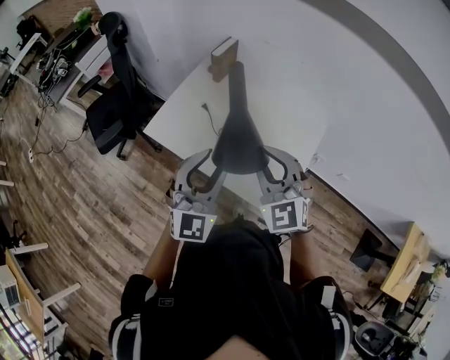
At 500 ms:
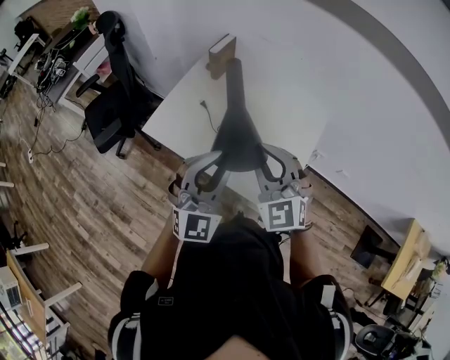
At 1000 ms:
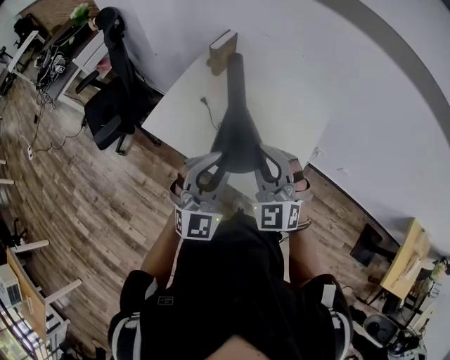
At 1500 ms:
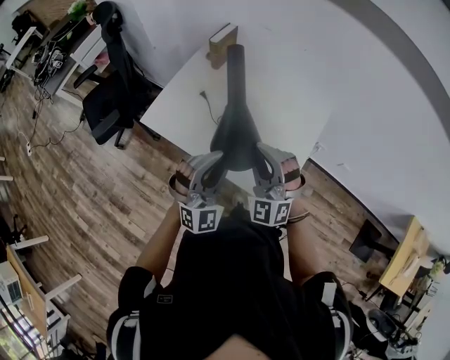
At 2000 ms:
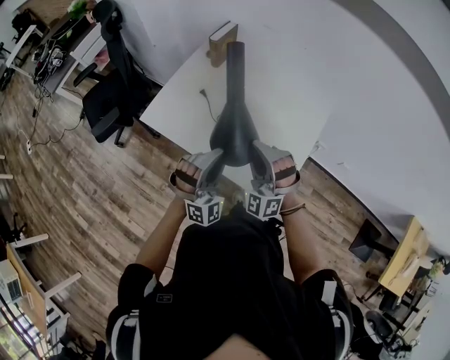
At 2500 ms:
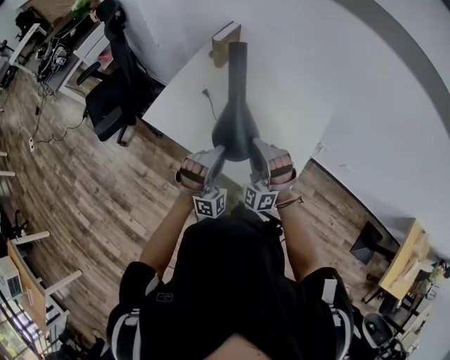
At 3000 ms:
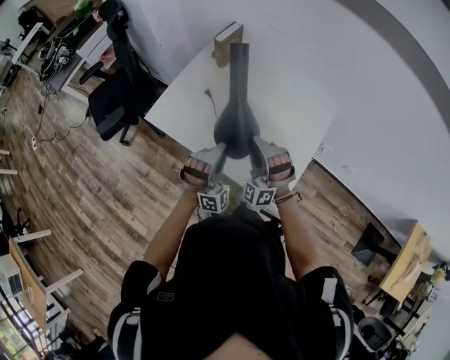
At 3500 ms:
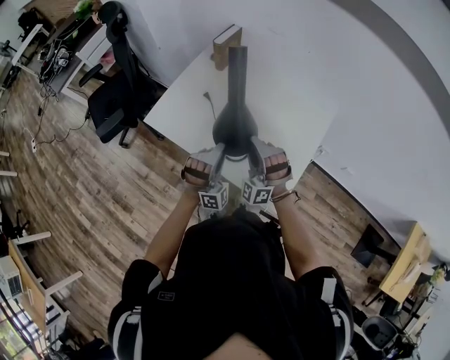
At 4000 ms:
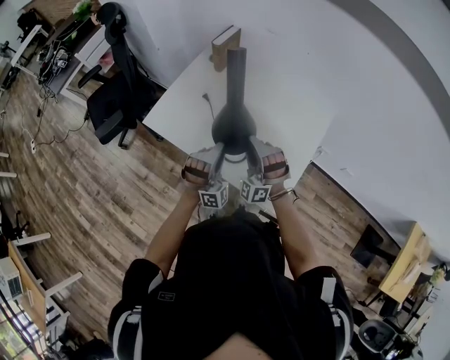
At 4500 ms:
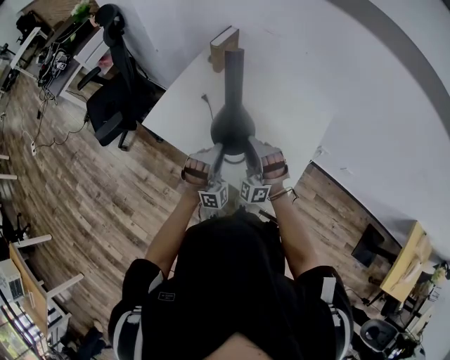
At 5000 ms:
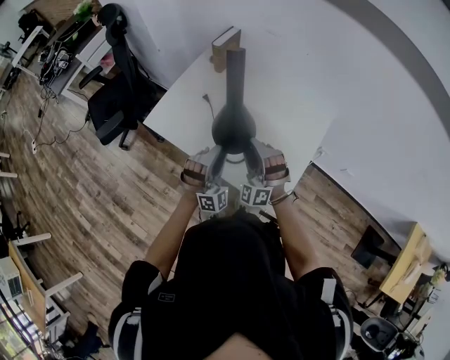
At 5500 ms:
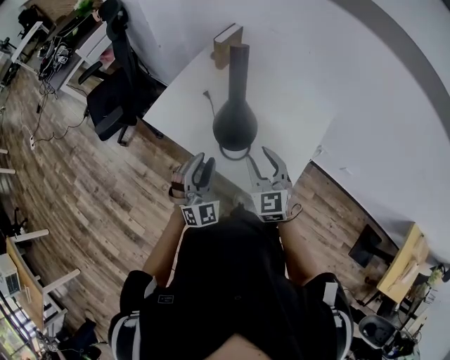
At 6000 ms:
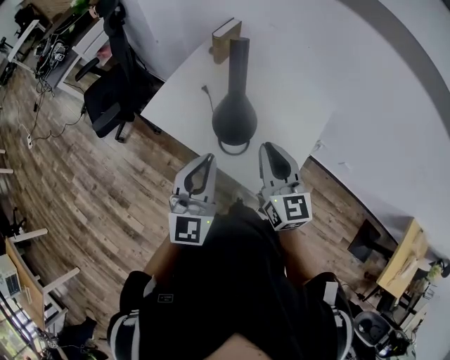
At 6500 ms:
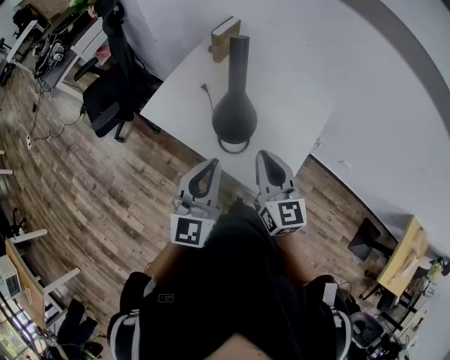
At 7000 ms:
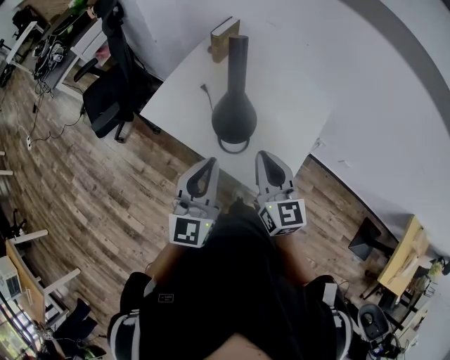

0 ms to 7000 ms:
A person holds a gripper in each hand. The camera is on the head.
0 ms to 2000 ms: The grippers both shift downward by about 10 cm. The right gripper changes its angle by roughly 40 degrees. Meanwhile the left gripper rotates approximately 40 degrees.
2000 ms to 3500 ms: Both grippers move downward, roughly 5 cm.
3500 ms to 5000 ms: The grippers move only a little.
5000 ms to 7000 ms: The grippers both shift upward and backward by roughly 15 cm. The right gripper rotates around the line of its fingers by approximately 80 degrees, clockwise from behind, and closes. The left gripper twists approximately 80 degrees counterclockwise, seen from behind, and closes its fingers.

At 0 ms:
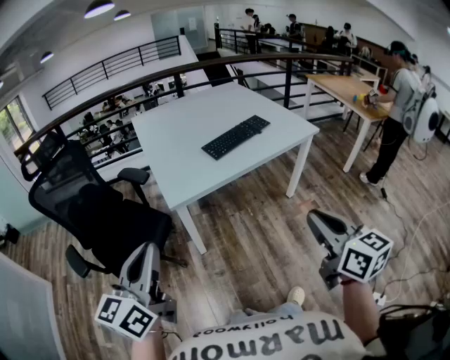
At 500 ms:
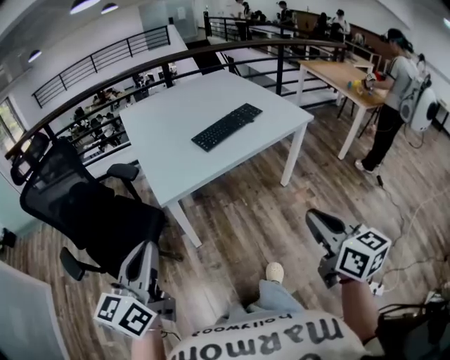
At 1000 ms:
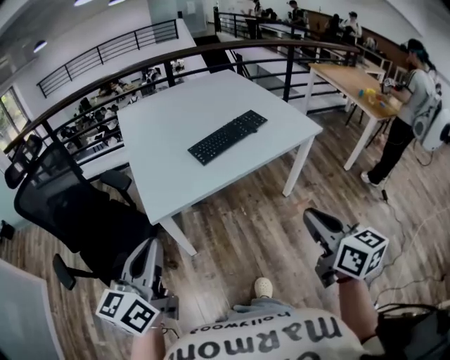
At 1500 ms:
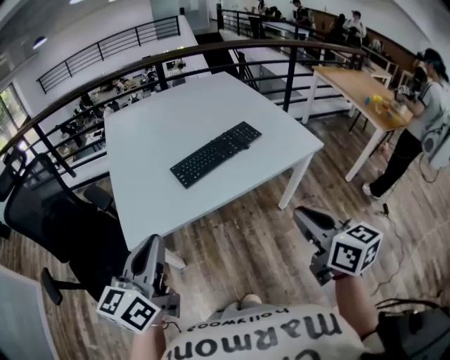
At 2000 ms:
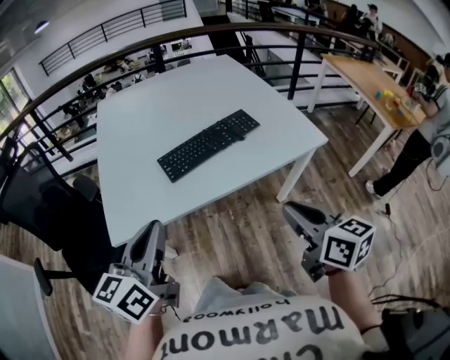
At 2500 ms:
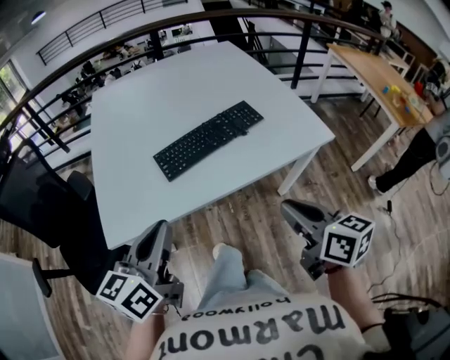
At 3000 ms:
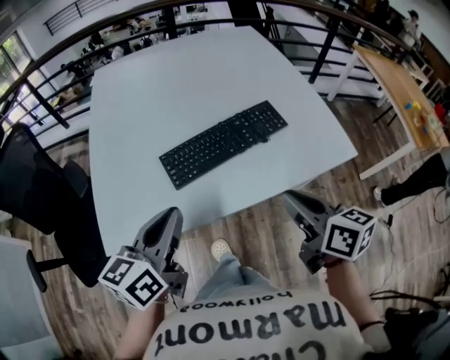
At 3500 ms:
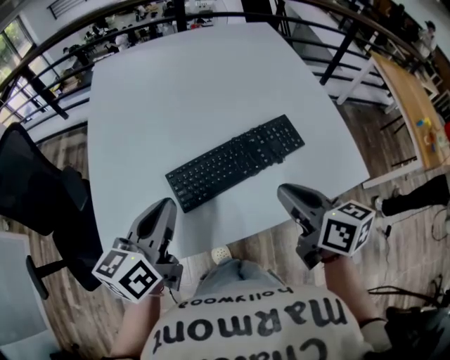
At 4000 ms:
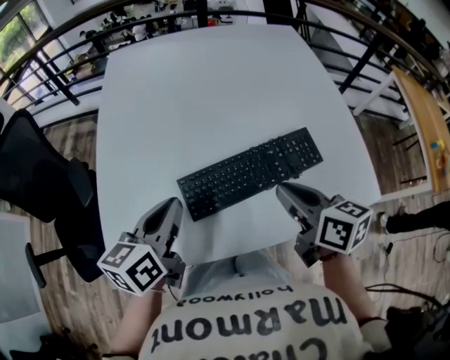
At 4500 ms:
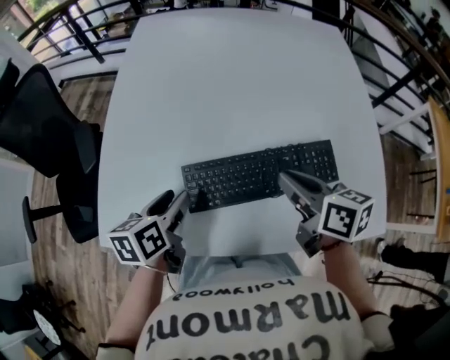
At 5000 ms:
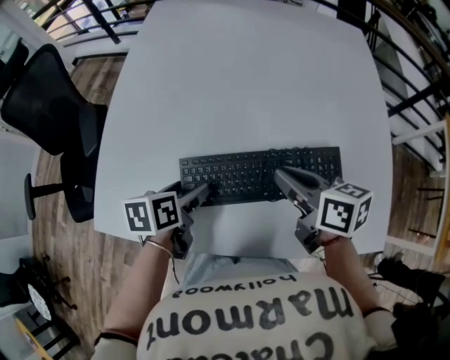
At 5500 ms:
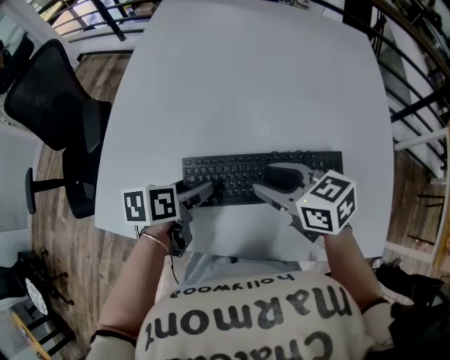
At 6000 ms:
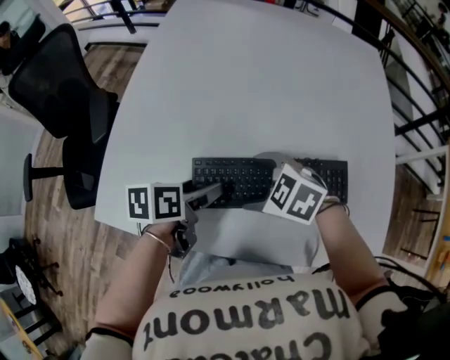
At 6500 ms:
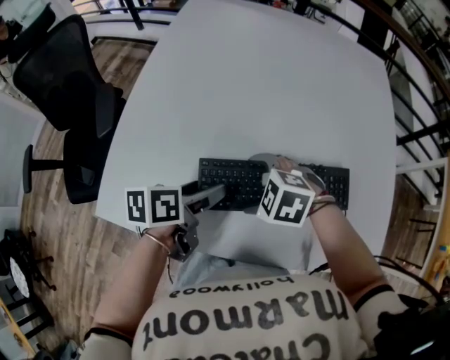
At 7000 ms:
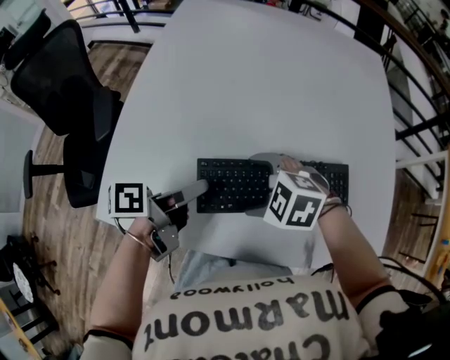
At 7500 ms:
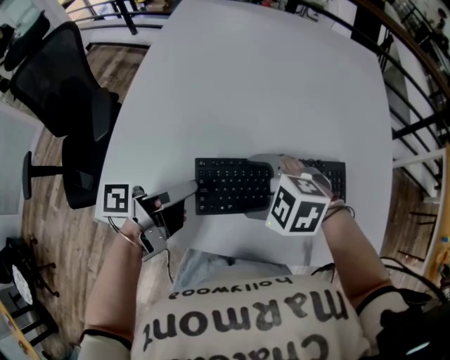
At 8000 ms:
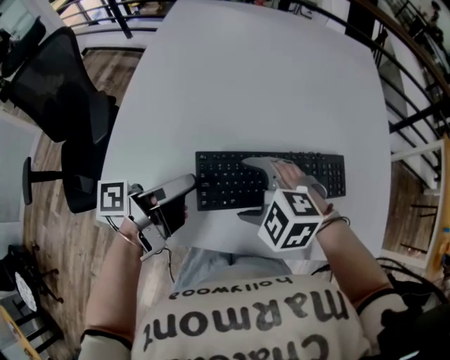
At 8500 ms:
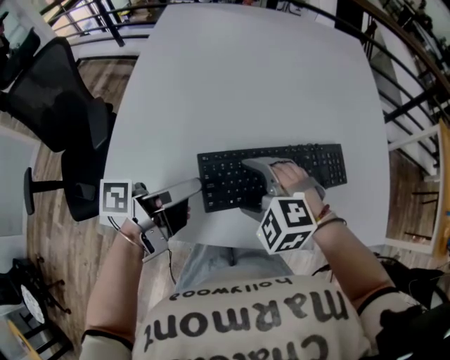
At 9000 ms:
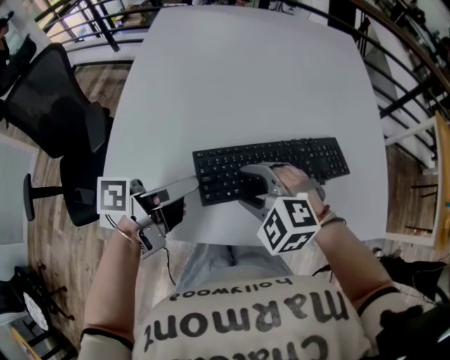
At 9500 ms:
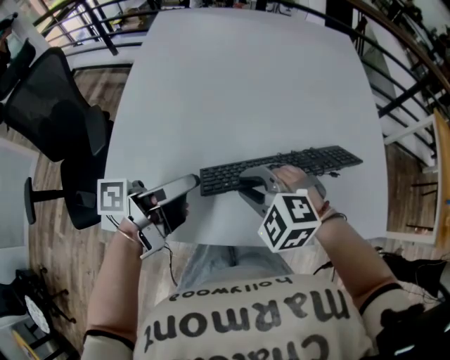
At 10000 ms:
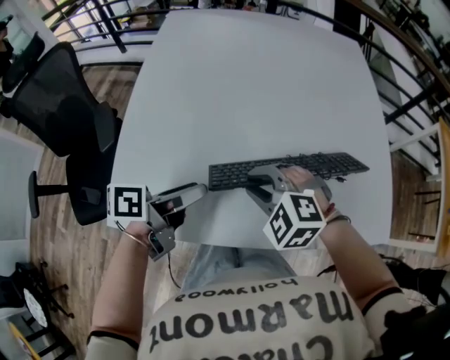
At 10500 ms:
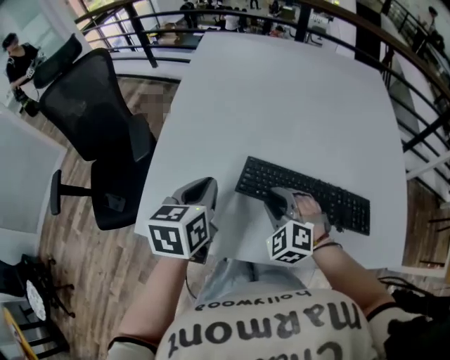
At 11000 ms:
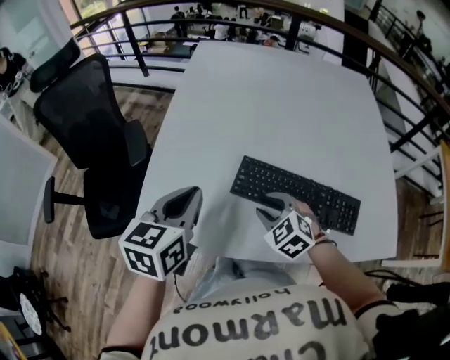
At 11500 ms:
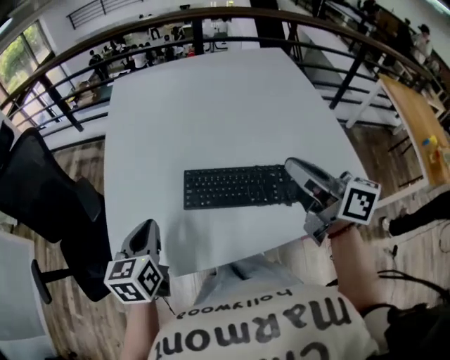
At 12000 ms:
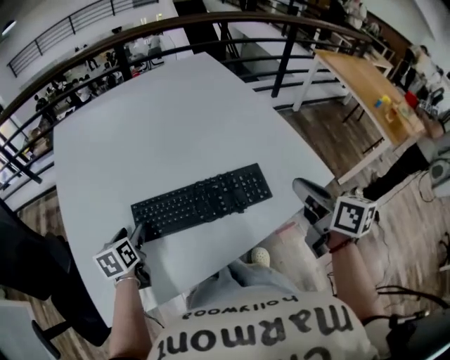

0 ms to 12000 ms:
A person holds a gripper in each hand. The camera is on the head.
0 ms to 2000 ms: The two grippers go some 30 cm forward and to the right.
2000 ms to 4000 ms: The grippers both shift forward by approximately 30 cm. The left gripper changes its angle by roughly 20 degrees.
4000 ms to 6000 ms: The two grippers go approximately 15 cm downward. The right gripper points its fingers approximately 30 degrees further downward, and opens up; the left gripper rotates approximately 40 degrees, and opens.
6000 ms to 8000 ms: The right gripper ends up some 5 cm from where it was; the left gripper is displaced upward by approximately 10 cm, and points its fingers about 40 degrees further upward.
8000 ms to 10000 ms: The right gripper closes its fingers, while the left gripper swivels approximately 20 degrees.
10000 ms to 12000 ms: The right gripper moves up and down over some 25 cm, changing direction 2 times, and rolls clockwise, seen from behind, by approximately 100 degrees; the left gripper changes place by some 15 cm, rotates some 50 degrees, and closes, then reopens.

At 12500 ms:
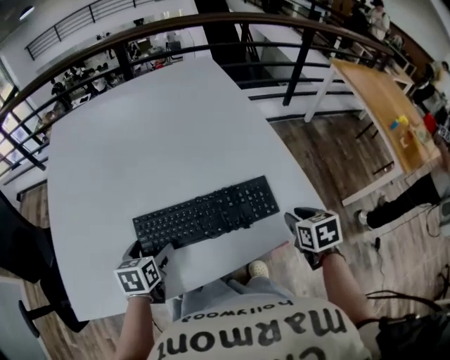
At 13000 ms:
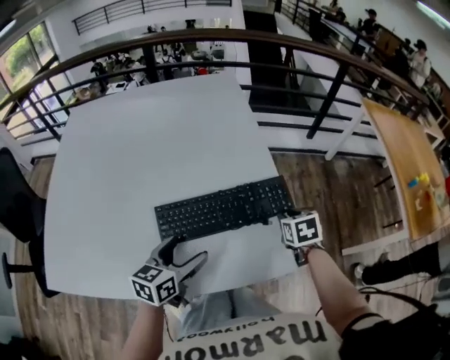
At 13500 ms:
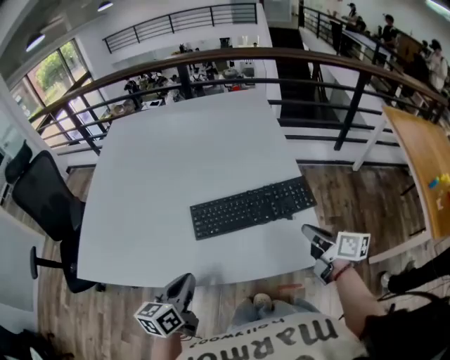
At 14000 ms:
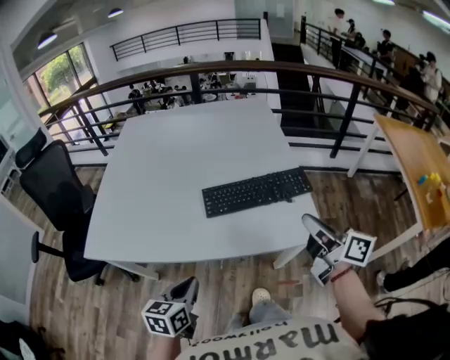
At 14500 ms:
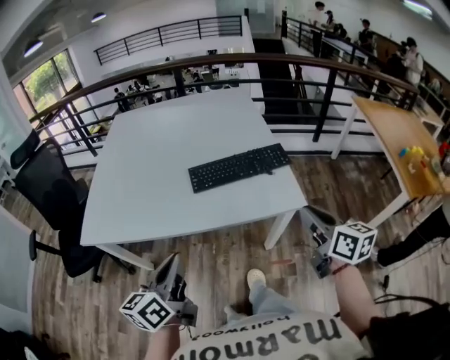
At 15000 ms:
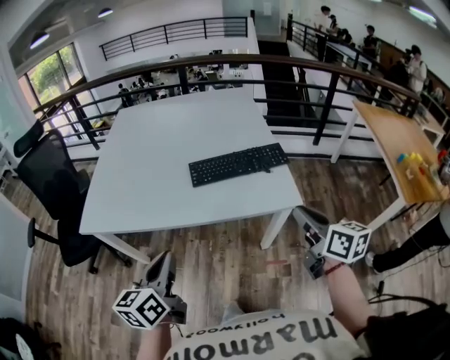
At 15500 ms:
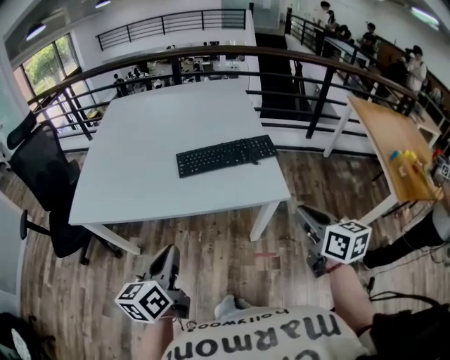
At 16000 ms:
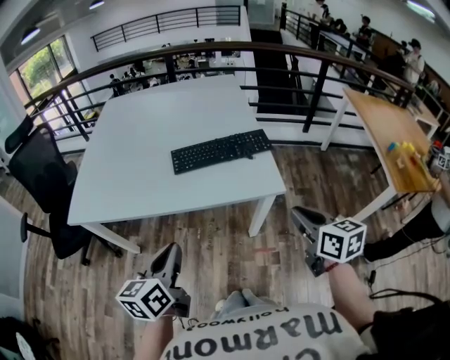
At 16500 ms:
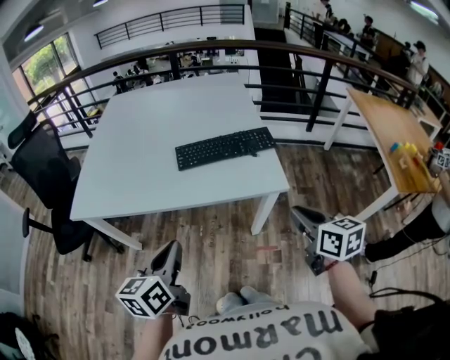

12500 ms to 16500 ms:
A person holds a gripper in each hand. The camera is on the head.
12500 ms to 14500 ms: The left gripper moves some 40 cm, points its fingers some 40 degrees further upward, and closes its fingers, while the right gripper travels upward by about 15 cm, and tips its fingers upward by some 40 degrees.
14500 ms to 16500 ms: The left gripper ends up some 5 cm from where it was. Meanwhile the right gripper moves backward, some 5 cm.

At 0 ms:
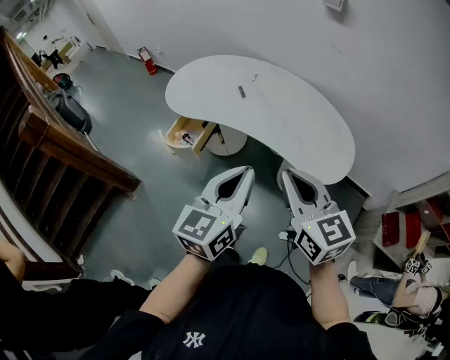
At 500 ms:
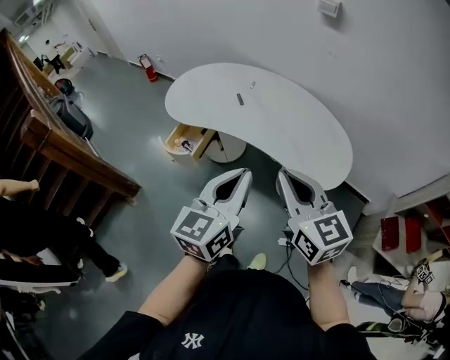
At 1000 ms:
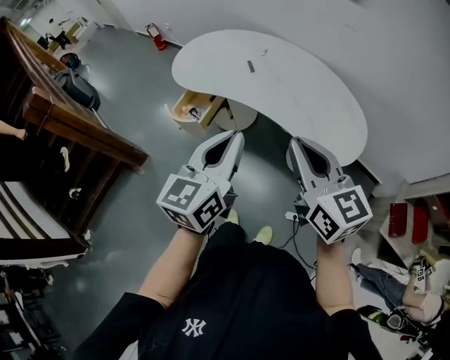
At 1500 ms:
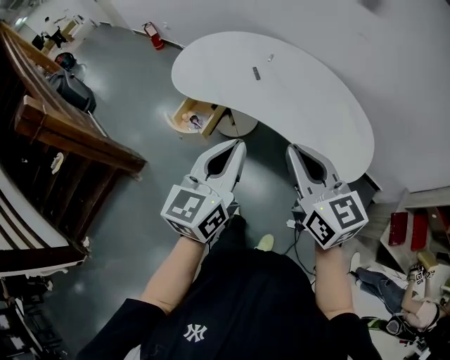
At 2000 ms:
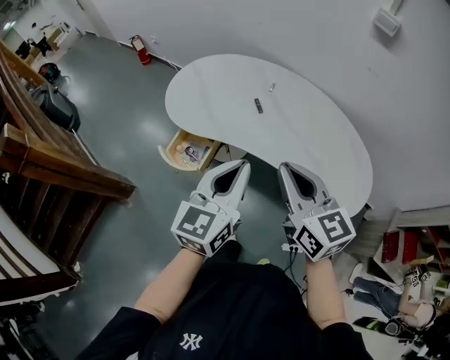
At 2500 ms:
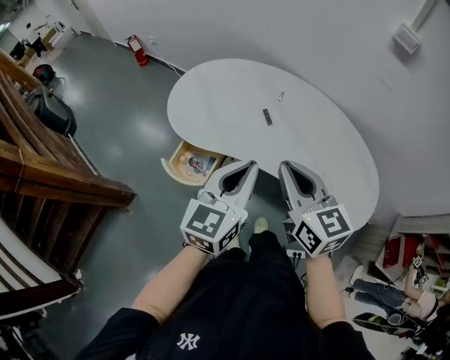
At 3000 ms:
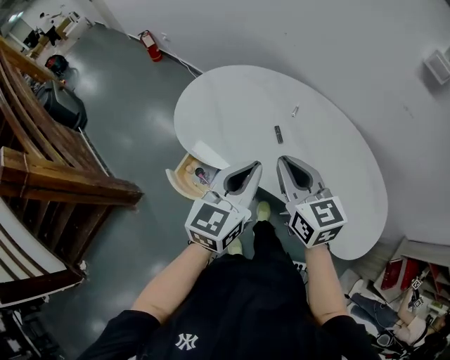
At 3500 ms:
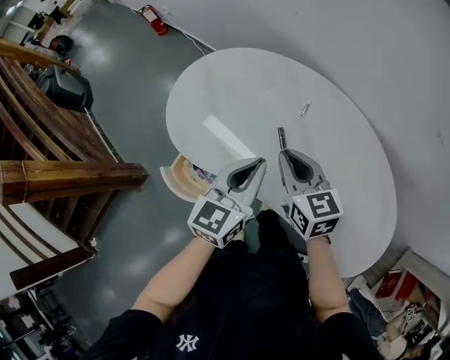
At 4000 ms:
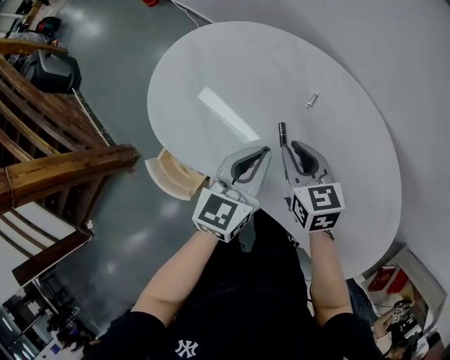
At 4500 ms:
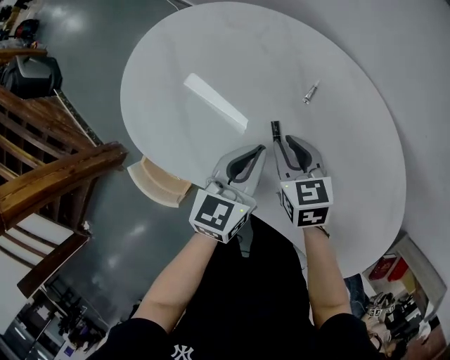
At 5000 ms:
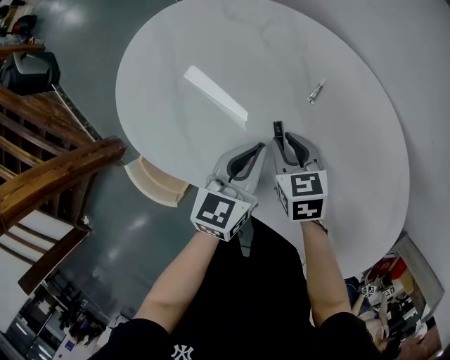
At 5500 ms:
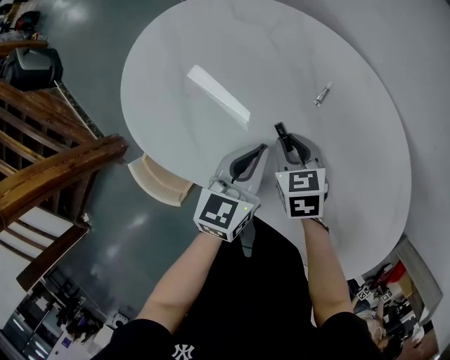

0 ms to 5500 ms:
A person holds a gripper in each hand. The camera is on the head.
0 ms to 2000 ms: The grippers both shift forward and to the left by roughly 20 cm.
2000 ms to 3500 ms: The two grippers go approximately 35 cm forward and downward.
3500 ms to 5500 ms: The left gripper goes roughly 20 cm downward and forward; the right gripper moves downward, approximately 20 cm, and points its fingers some 30 degrees further downward.
